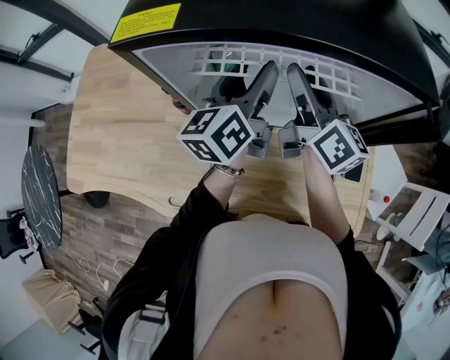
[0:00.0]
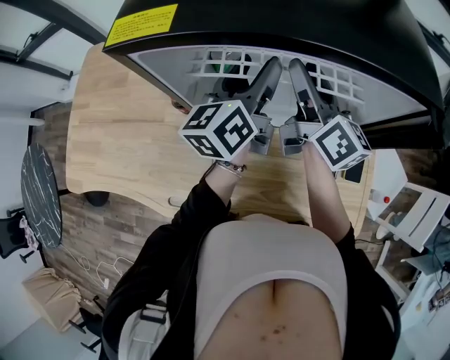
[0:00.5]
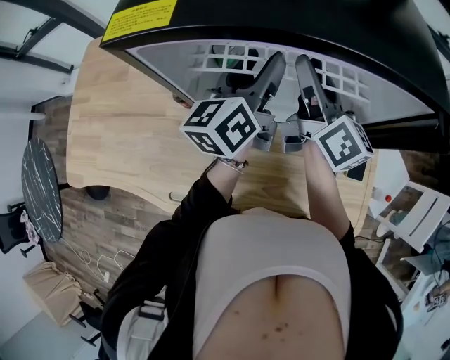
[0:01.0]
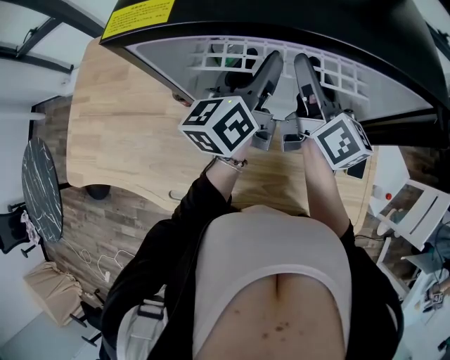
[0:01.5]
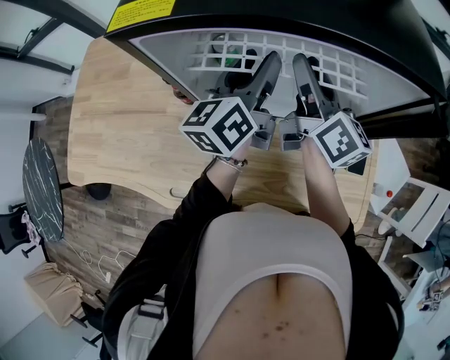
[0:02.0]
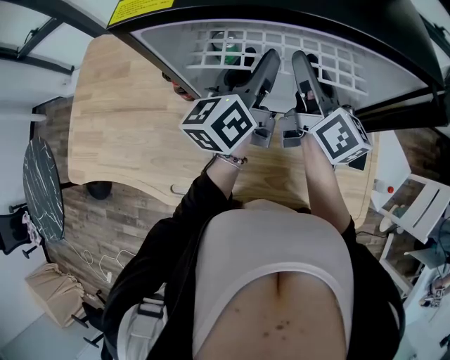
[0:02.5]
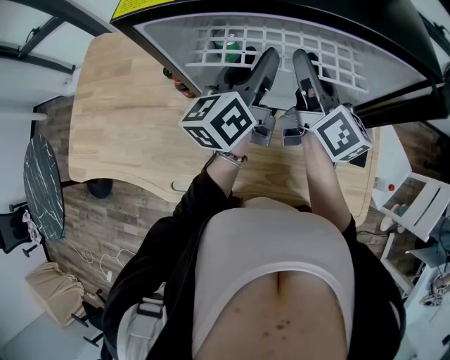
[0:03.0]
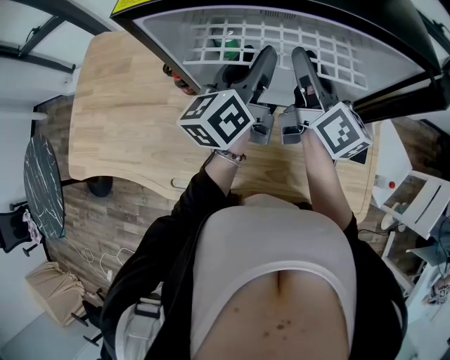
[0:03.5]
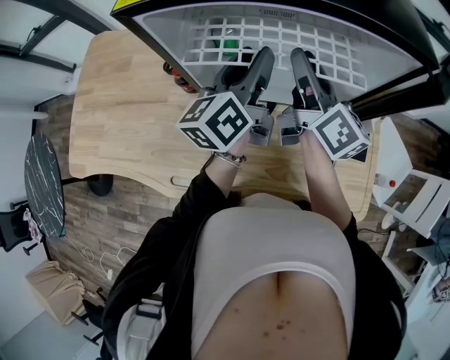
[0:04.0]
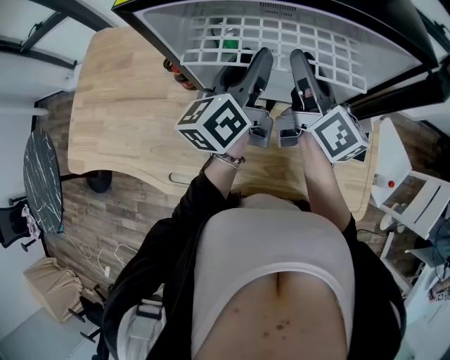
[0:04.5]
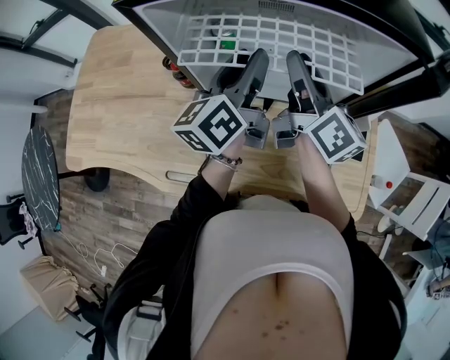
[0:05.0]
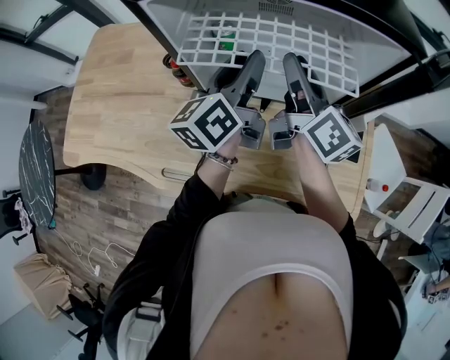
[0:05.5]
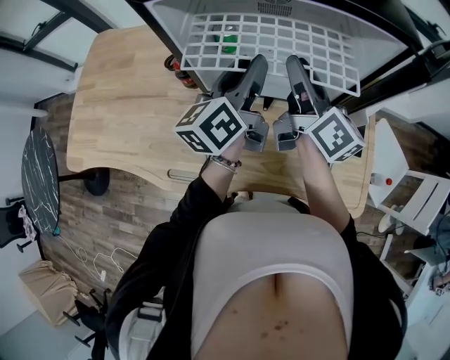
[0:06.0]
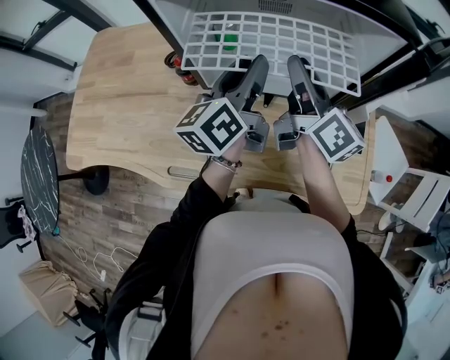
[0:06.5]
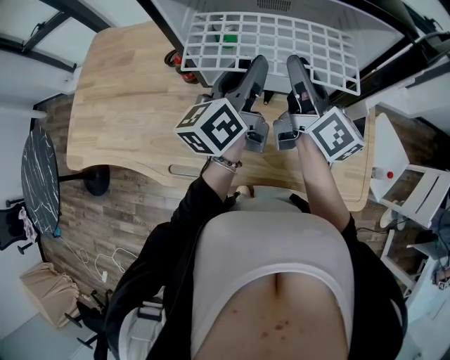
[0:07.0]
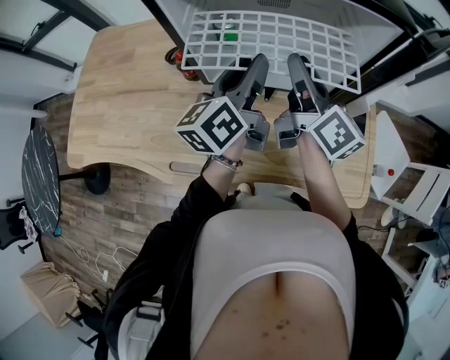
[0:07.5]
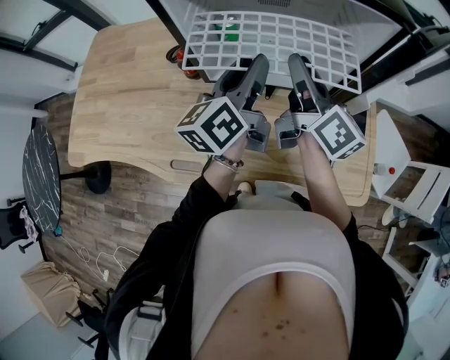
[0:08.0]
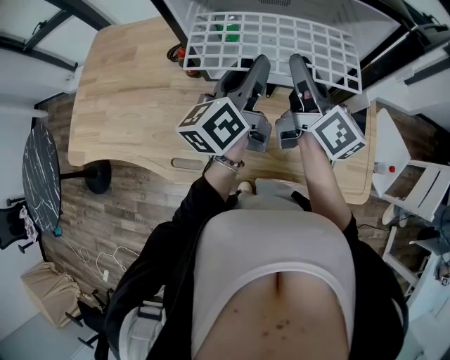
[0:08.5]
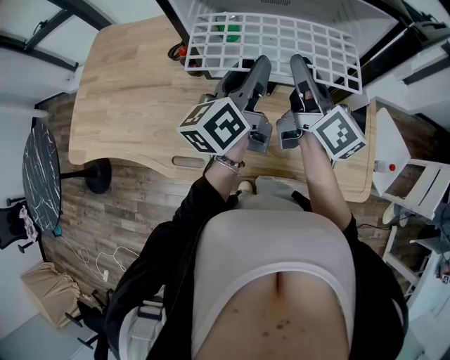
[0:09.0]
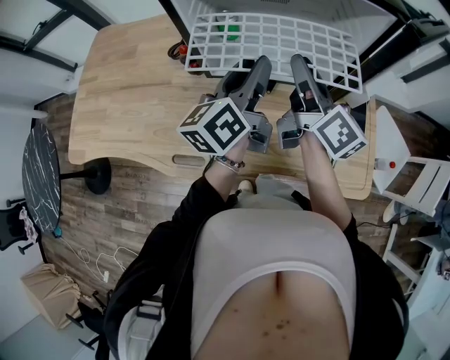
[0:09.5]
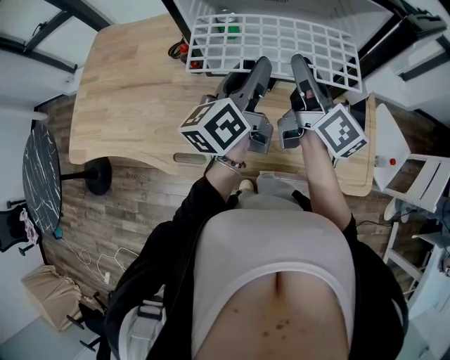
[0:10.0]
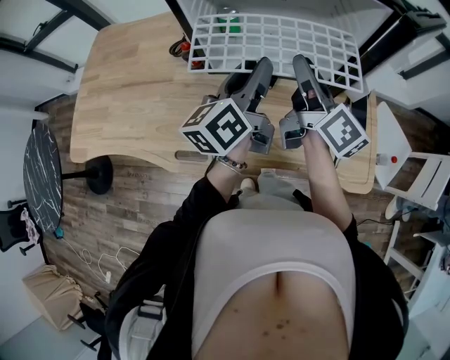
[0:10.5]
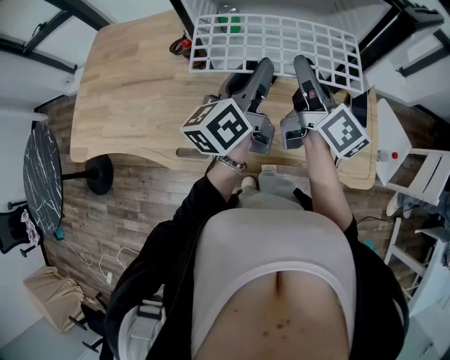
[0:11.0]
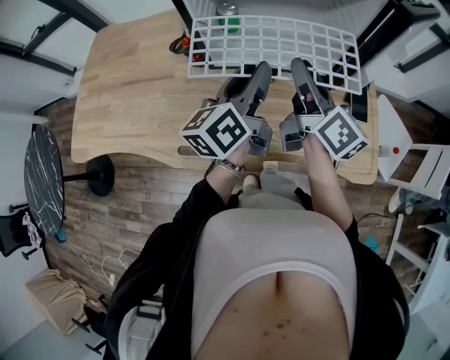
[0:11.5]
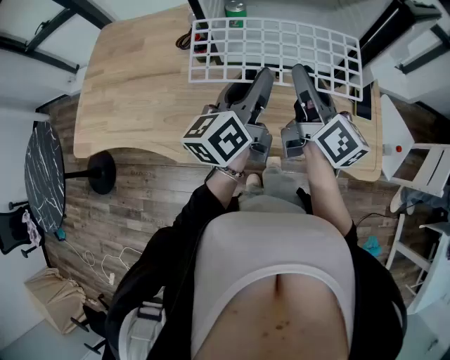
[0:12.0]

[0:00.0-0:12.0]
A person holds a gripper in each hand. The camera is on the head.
0:00.0 to 0:04.0: The grippers make only small movements.
0:04.0 to 0:06.0: The grippers make only small movements.
0:06.0 to 0:08.0: The grippers make only small movements.
0:08.0 to 0:10.0: The grippers move only a little.
0:10.0 to 0:12.0: The two grippers go roughly 5 cm backward.

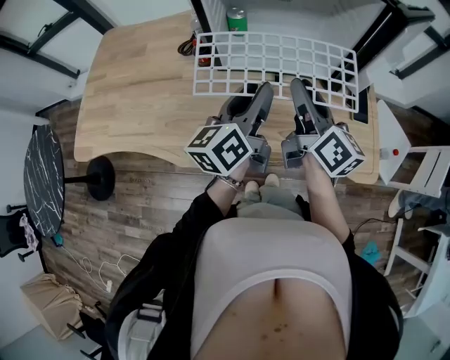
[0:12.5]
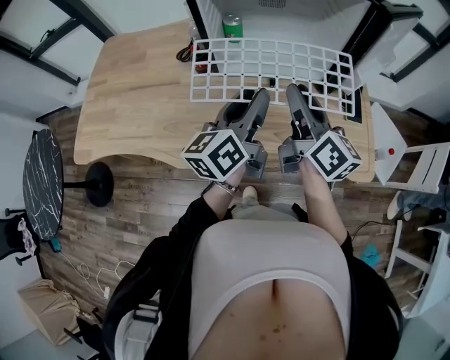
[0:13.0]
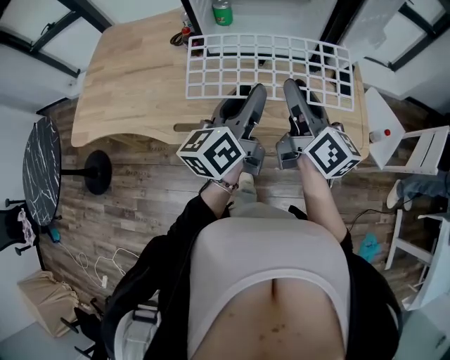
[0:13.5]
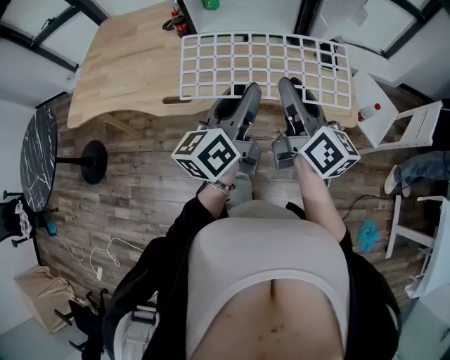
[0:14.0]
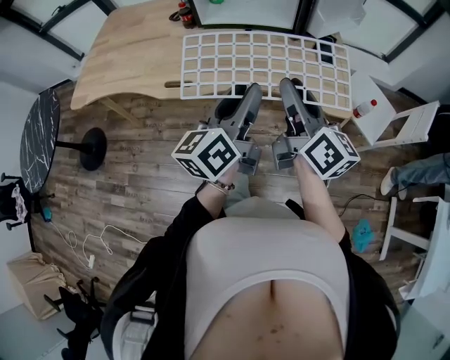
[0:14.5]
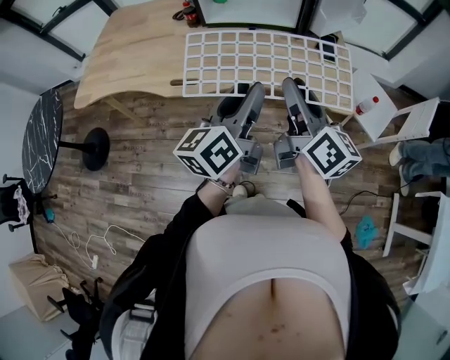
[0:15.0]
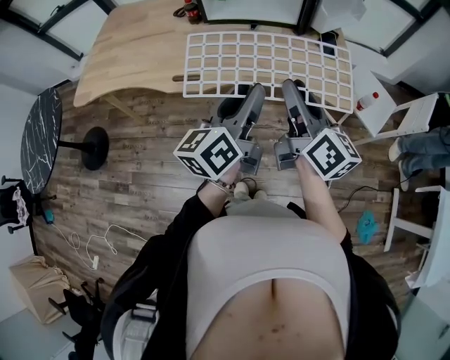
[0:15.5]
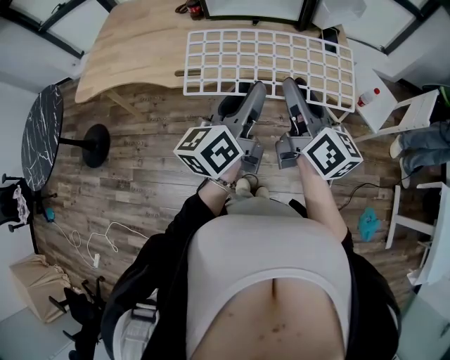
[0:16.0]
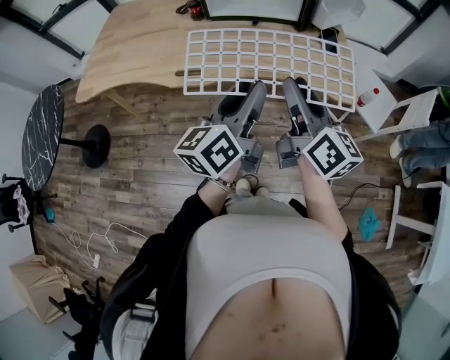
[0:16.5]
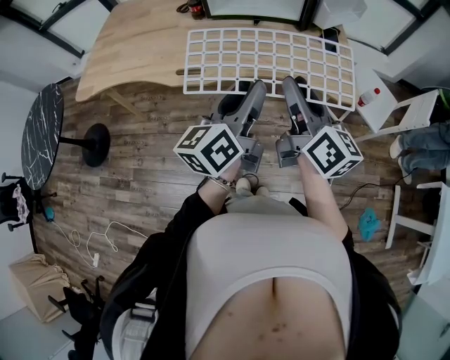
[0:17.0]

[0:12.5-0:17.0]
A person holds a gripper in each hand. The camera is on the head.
0:12.5 to 0:14.5: The grippers both shift backward by roughly 25 cm.
0:14.5 to 0:17.0: The left gripper moves roughly 5 cm, while the right gripper shifts approximately 5 cm backward.

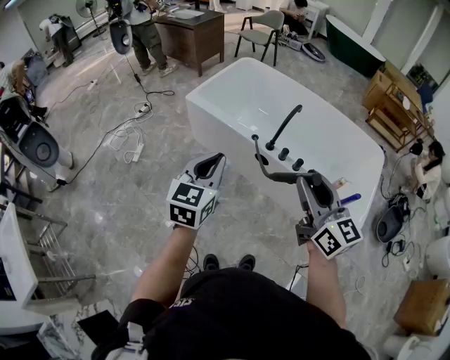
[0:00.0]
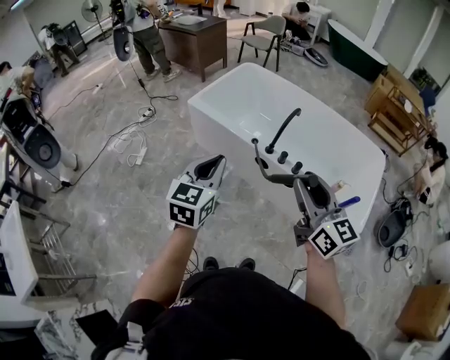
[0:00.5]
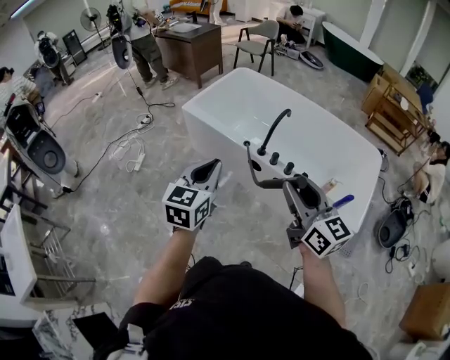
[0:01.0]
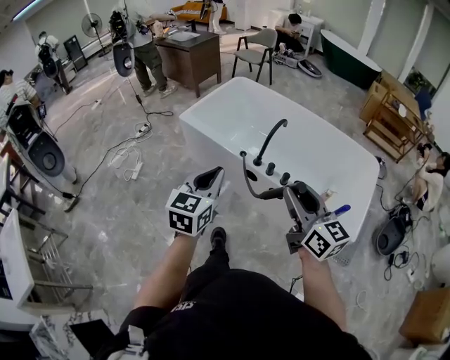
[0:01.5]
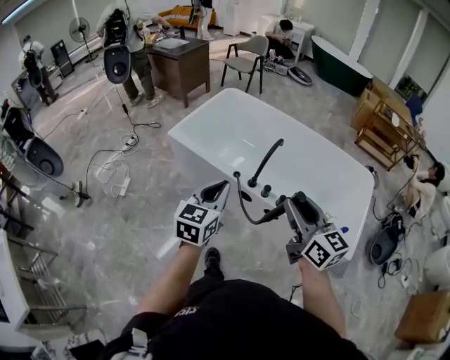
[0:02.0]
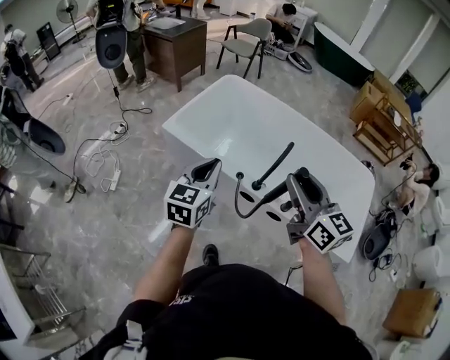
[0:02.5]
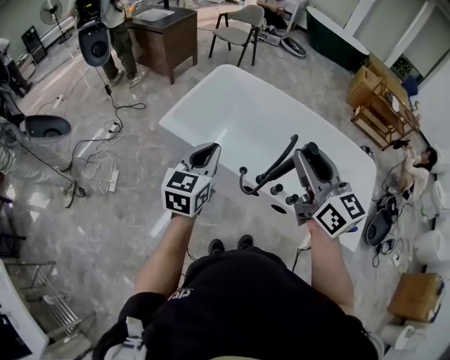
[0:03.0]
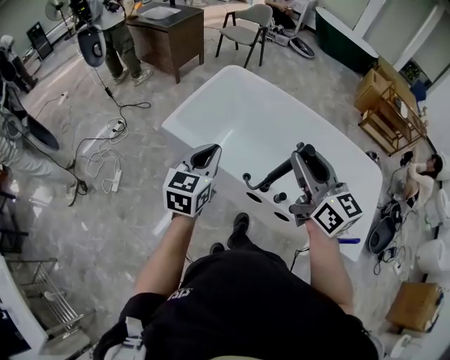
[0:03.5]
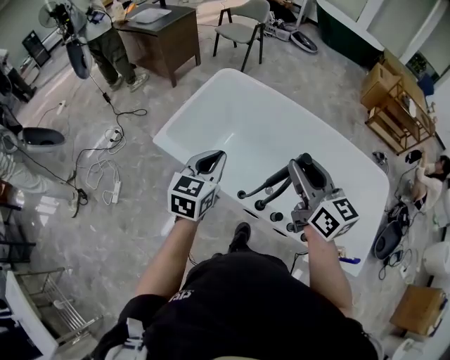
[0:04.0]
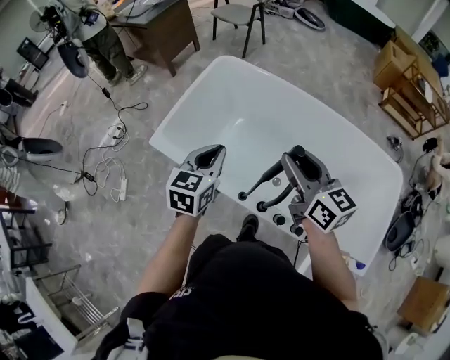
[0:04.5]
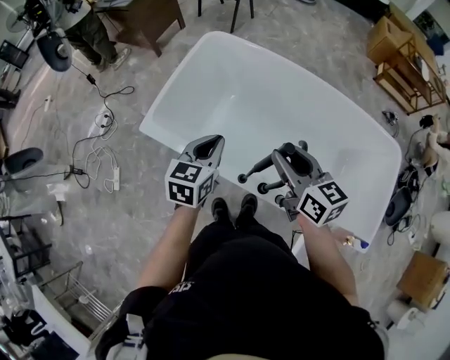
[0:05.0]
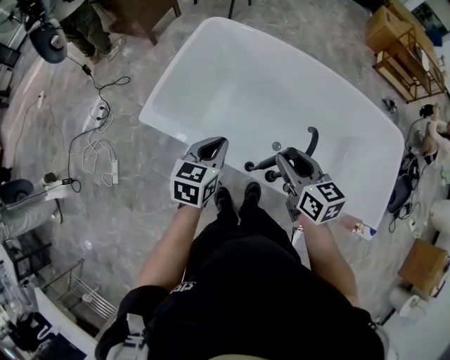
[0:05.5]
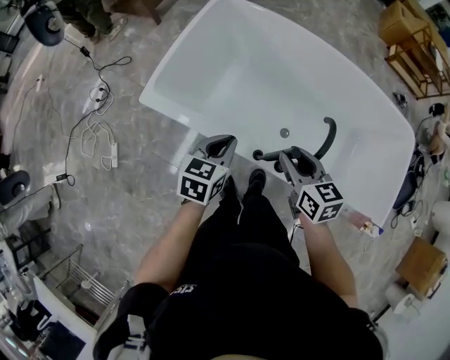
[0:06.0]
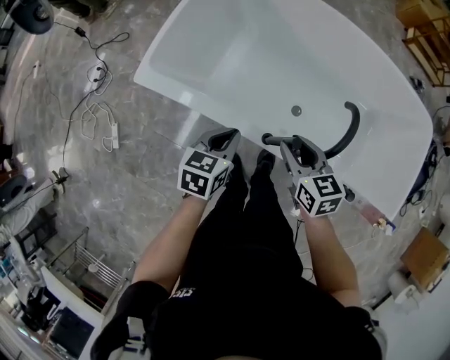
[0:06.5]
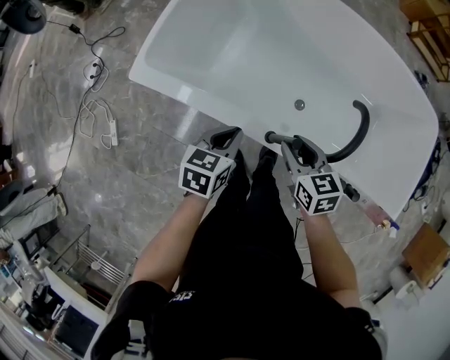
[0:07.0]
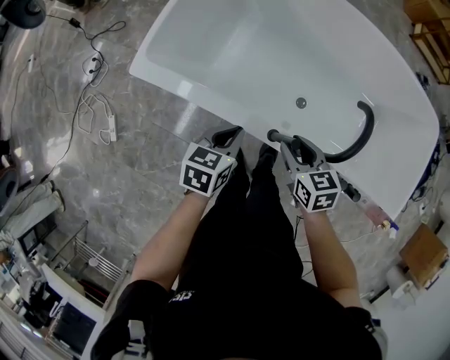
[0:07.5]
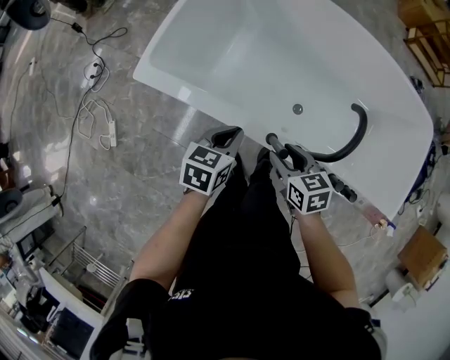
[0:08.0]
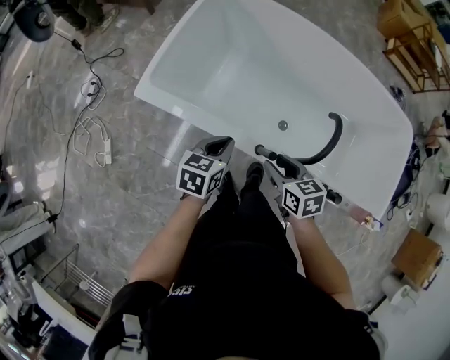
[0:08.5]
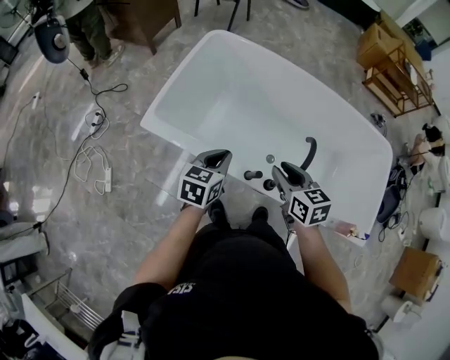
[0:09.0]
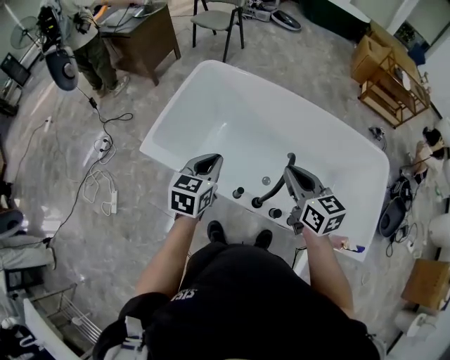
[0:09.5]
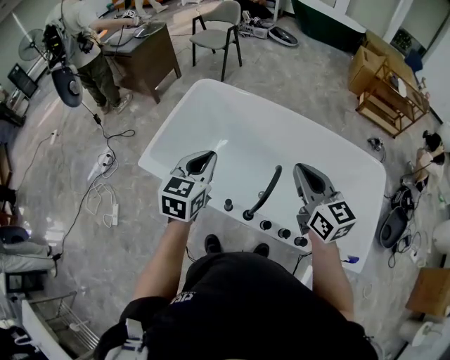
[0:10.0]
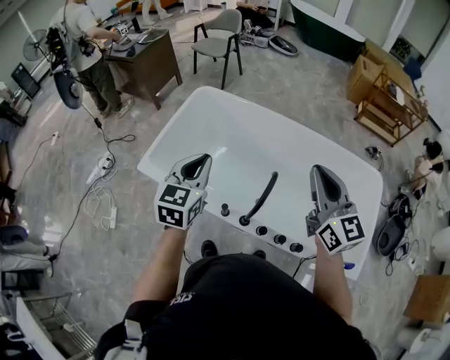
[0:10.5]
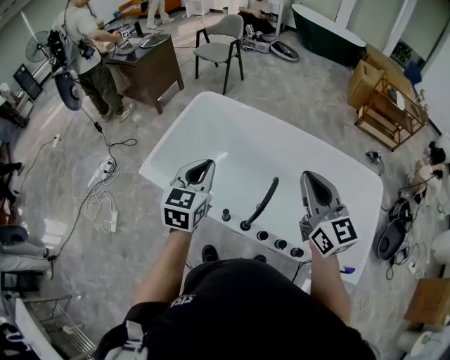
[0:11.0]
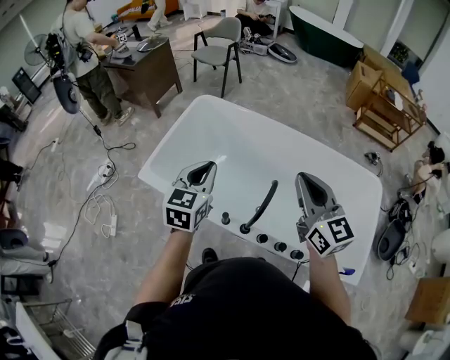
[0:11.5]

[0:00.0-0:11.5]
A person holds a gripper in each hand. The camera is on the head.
0:00.0 to 0:02.0: The right gripper goes approximately 10 cm forward and to the right; the left gripper goes about 15 cm to the right and forward.
0:02.0 to 0:04.0: Both grippers travel together forward, about 40 cm.
0:04.0 to 0:06.0: Both grippers travel together downward, approximately 25 cm. The right gripper swivels some 30 degrees. The left gripper changes its angle by about 20 degrees.
0:06.0 to 0:07.5: Both grippers travel together downward, roughly 15 cm.
0:07.5 to 0:09.5: The grippers both shift upward by roughly 30 cm. The right gripper rotates about 20 degrees, and closes its fingers; the left gripper turns by approximately 20 degrees.
0:09.5 to 0:11.5: The right gripper heads upward and to the right, covering approximately 15 cm, and rotates some 20 degrees; the left gripper goes approximately 10 cm upward.
